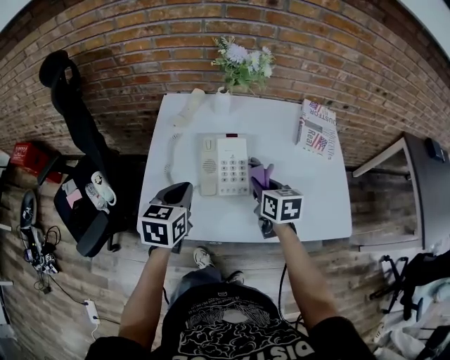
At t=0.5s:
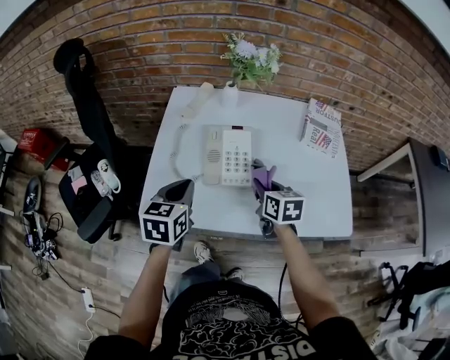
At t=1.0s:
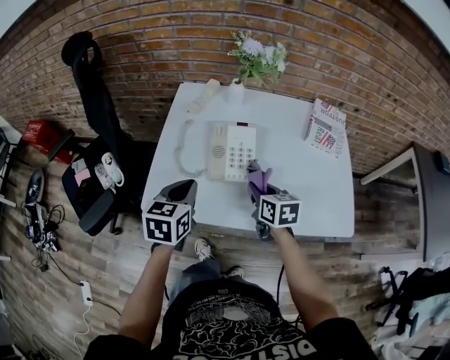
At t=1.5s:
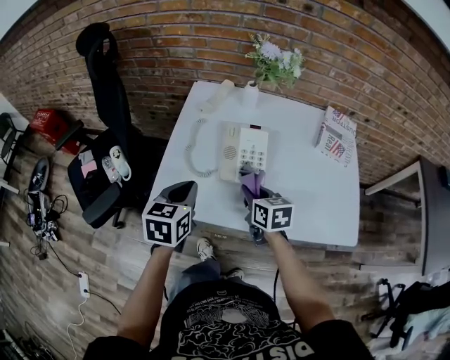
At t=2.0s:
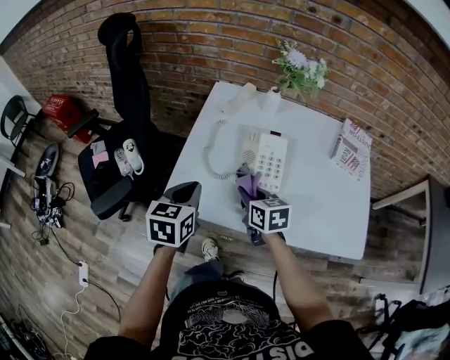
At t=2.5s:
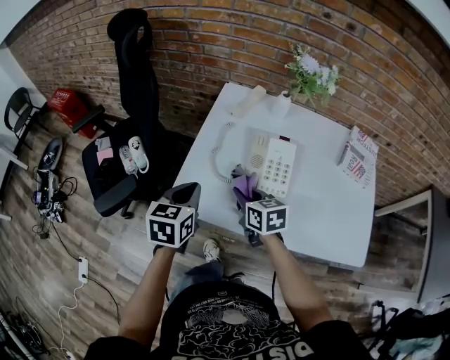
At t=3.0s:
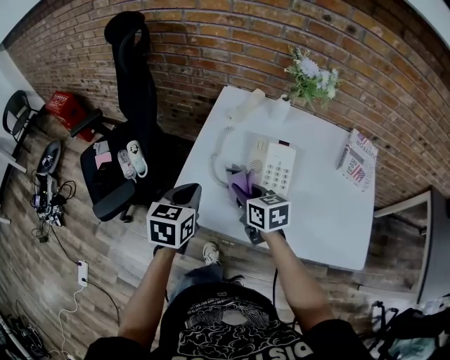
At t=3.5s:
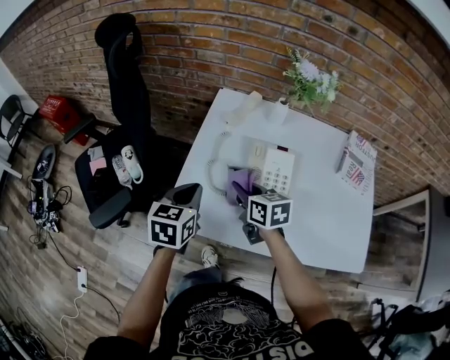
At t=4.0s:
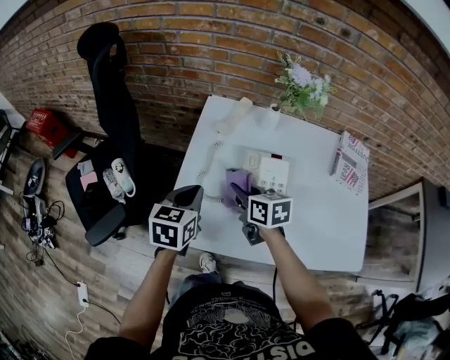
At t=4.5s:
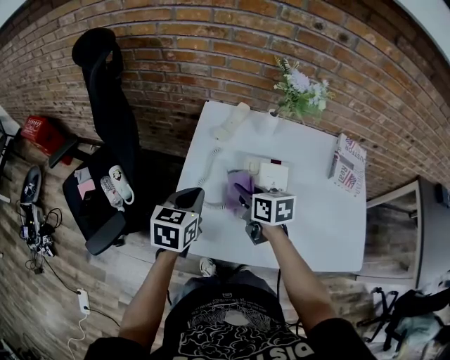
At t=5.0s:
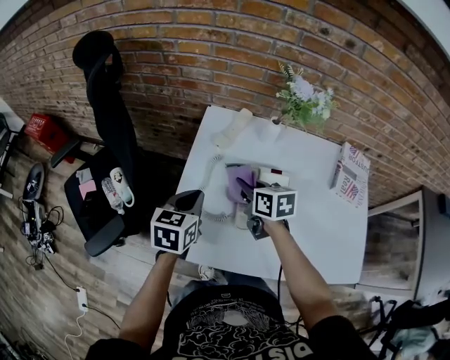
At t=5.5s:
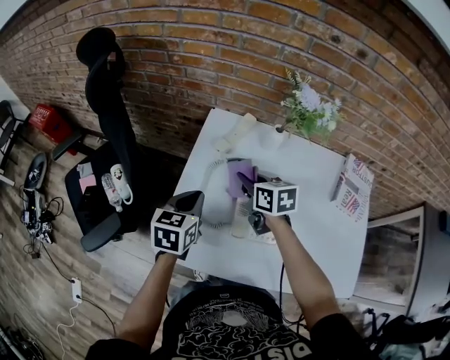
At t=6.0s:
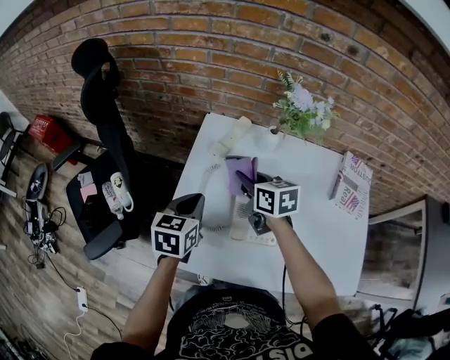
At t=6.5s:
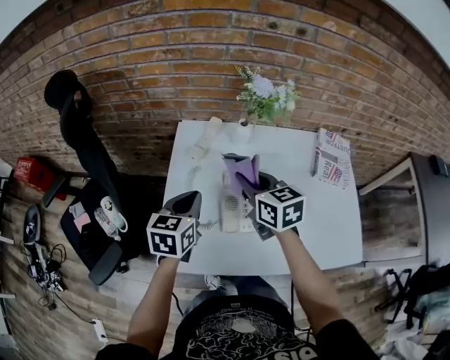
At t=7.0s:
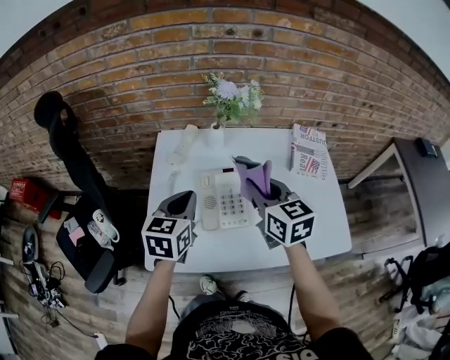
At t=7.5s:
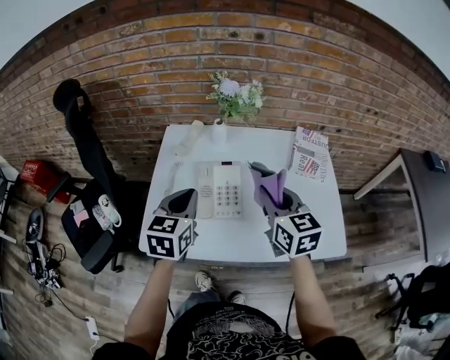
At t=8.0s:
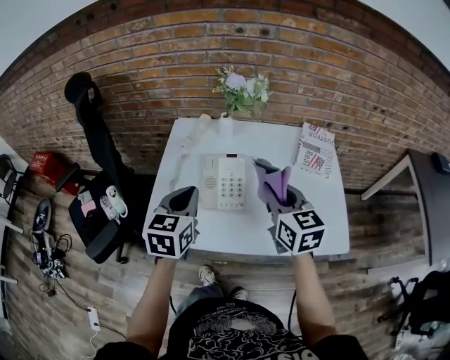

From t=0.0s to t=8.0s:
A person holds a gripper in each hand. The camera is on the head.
From t=0.0s to t=2.0s: The right gripper travels to the left by some 15 cm; the left gripper is displaced to the left and backward by approximately 10 cm.
From t=2.0s to t=4.0s: The grippers both shift forward by approximately 10 cm.
From t=4.0s to t=6.0s: The left gripper travels forward by about 5 cm, while the right gripper travels forward by about 10 cm.
From t=6.0s to t=8.0s: The left gripper travels backward, to the right and upward by some 20 cm. The right gripper travels backward, to the right and upward by roughly 30 cm, and swivels approximately 30 degrees.

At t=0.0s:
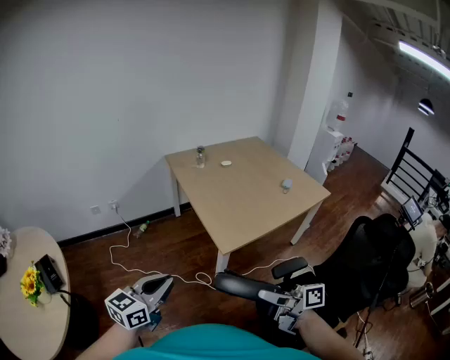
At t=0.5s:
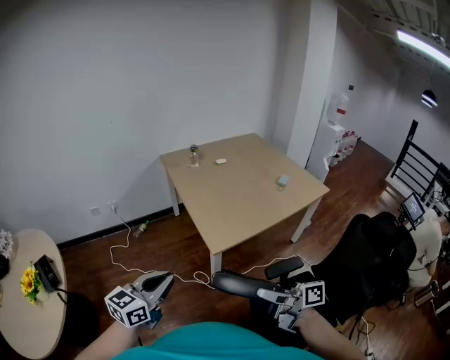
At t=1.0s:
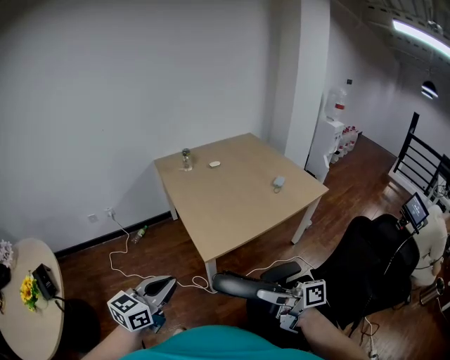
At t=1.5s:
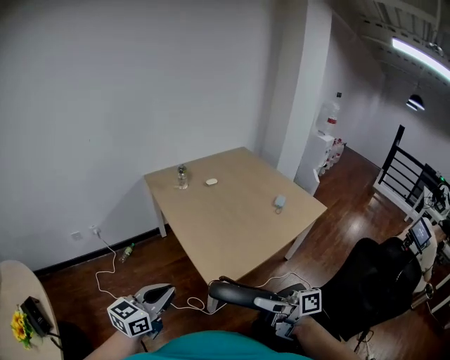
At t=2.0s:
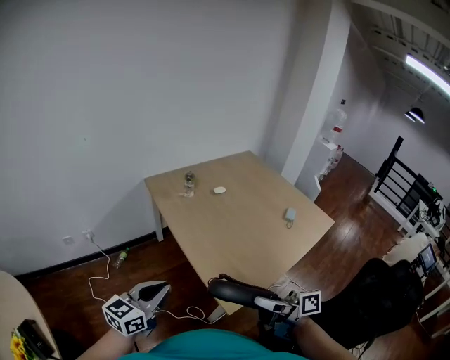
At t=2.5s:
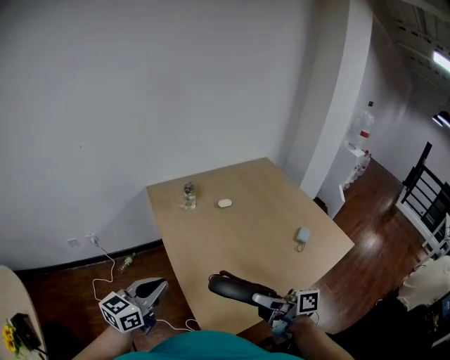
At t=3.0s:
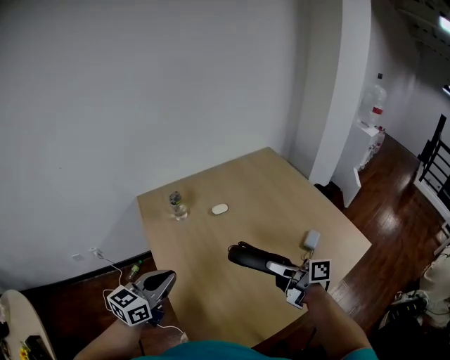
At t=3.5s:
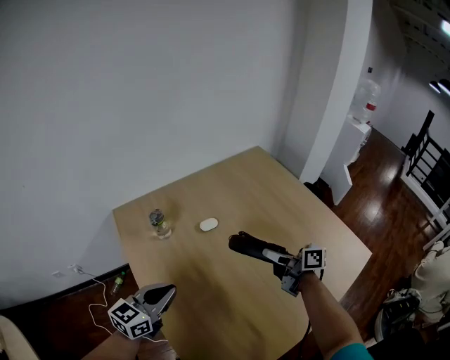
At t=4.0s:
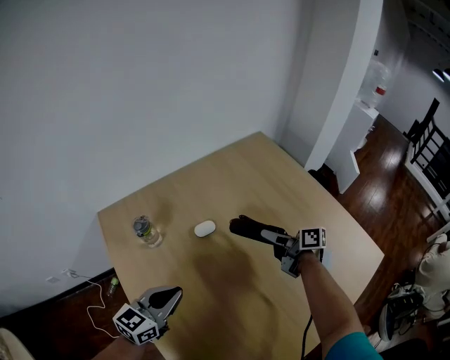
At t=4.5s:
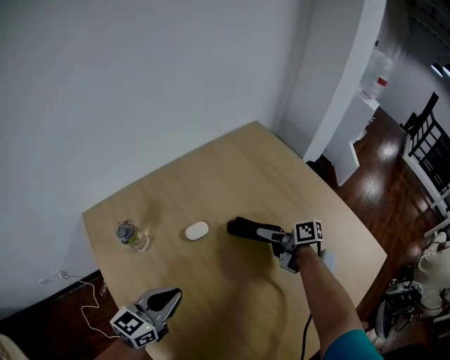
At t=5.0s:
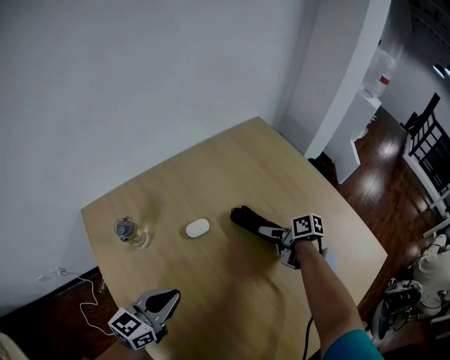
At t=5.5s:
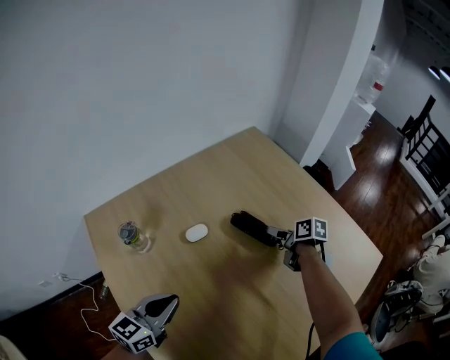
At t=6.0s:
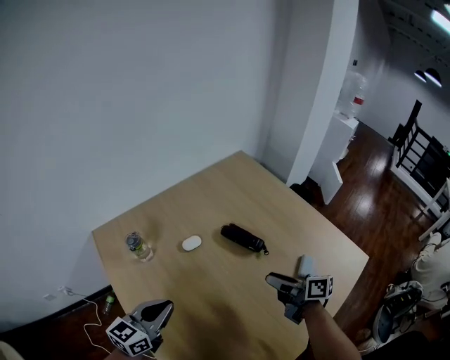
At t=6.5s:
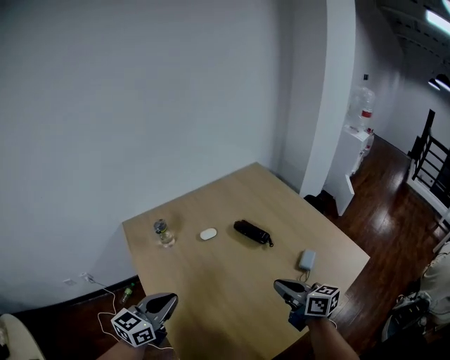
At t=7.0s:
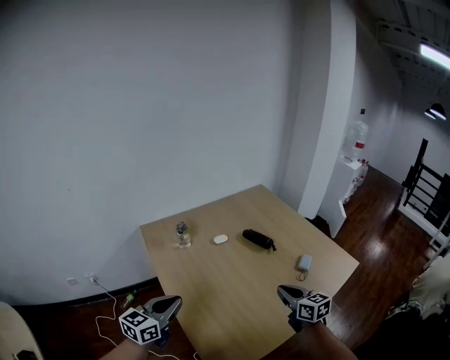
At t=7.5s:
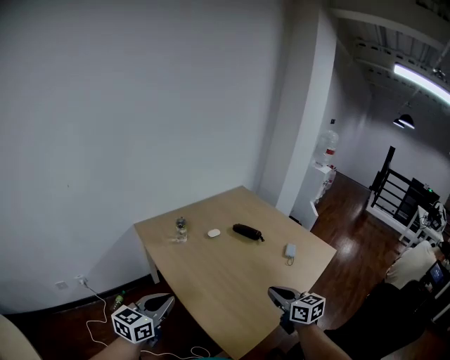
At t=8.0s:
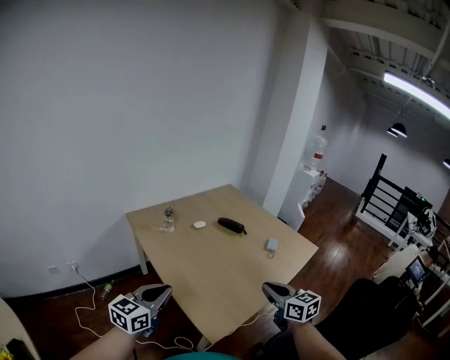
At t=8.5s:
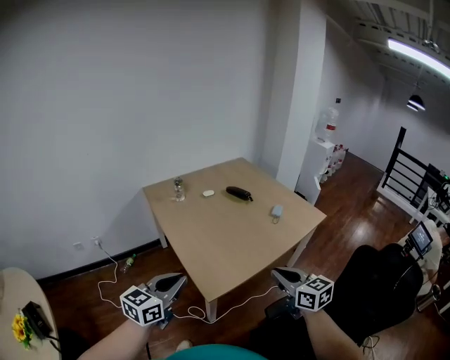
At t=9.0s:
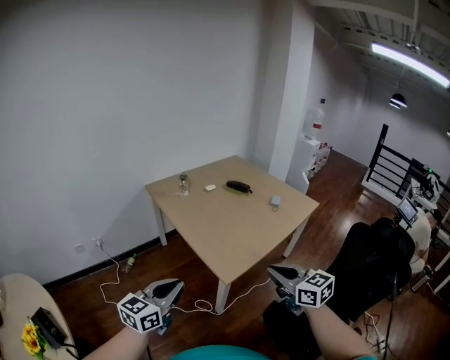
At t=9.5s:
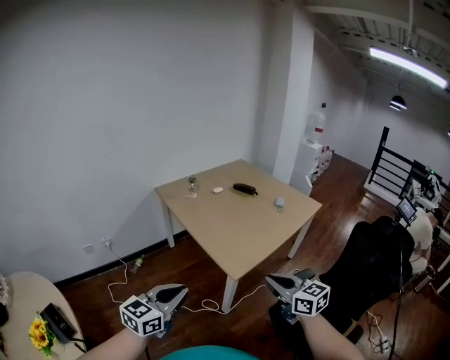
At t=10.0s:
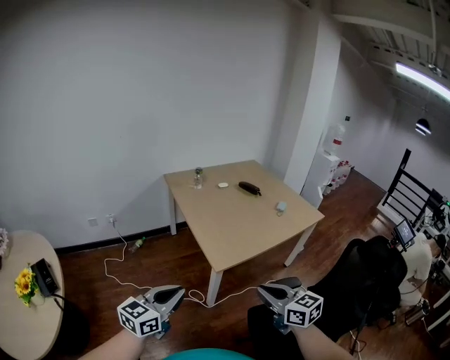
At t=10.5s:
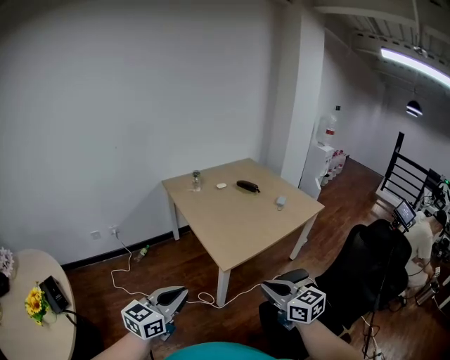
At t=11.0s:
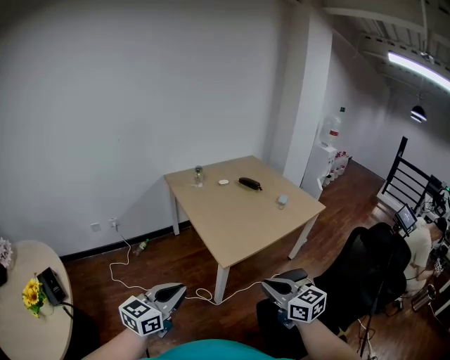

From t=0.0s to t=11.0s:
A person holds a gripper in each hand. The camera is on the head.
From t=0.0s to t=2.0s: Both grippers move forward, about 30 cm.
From t=2.0s to t=3.5s: The two grippers go approximately 50 cm forward and to the right.
From t=3.5s to t=5.5s: The left gripper shifts approximately 10 cm forward and downward, while the right gripper moves downward, forward and to the right, some 25 cm, and angles its fingers downward, by approximately 40 degrees.
From t=5.5s to t=7.5s: The right gripper shifts about 50 cm backward and upward, rotates some 50 degrees, and closes up, while the left gripper shifts roughly 35 cm backward, upward and to the left.
From t=7.5s to t=9.0s: The grippers both shift backward by approximately 30 cm.
From t=9.0s to t=11.0s: Both grippers travel together backward, some 15 cm.

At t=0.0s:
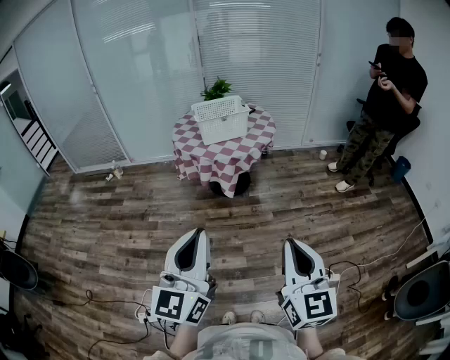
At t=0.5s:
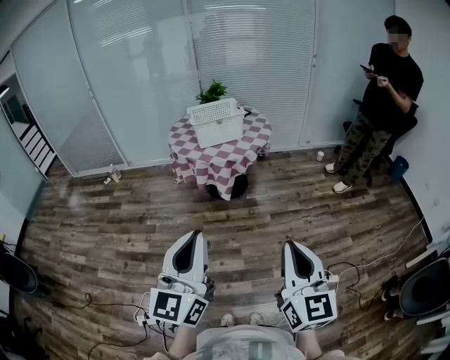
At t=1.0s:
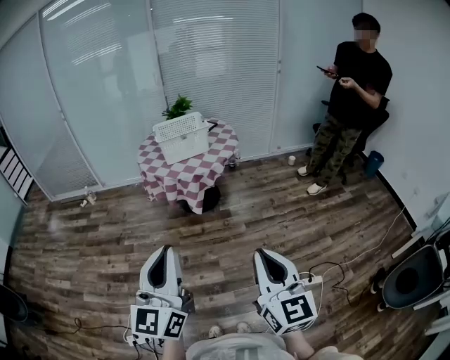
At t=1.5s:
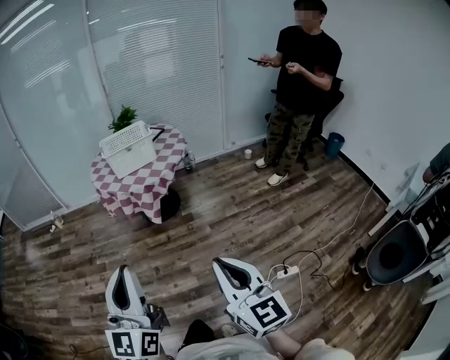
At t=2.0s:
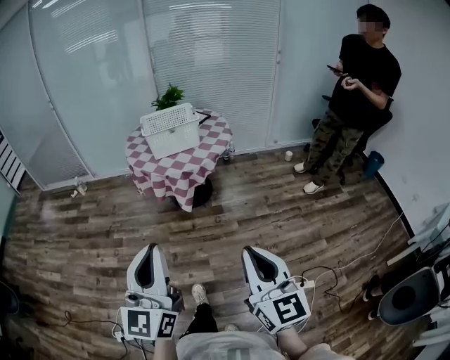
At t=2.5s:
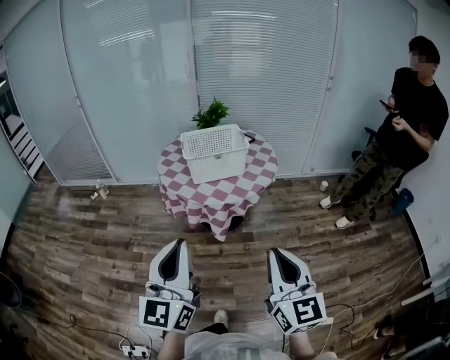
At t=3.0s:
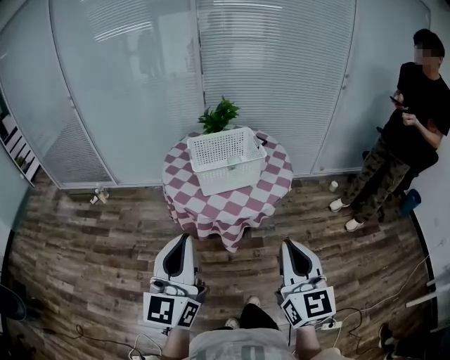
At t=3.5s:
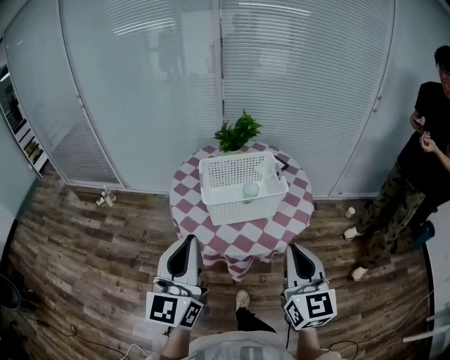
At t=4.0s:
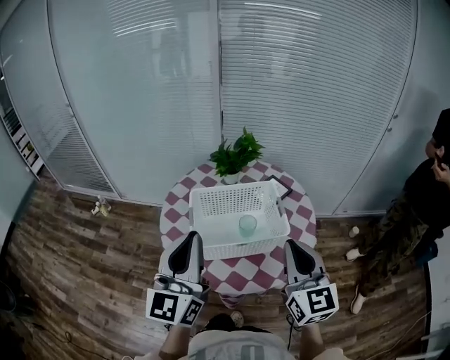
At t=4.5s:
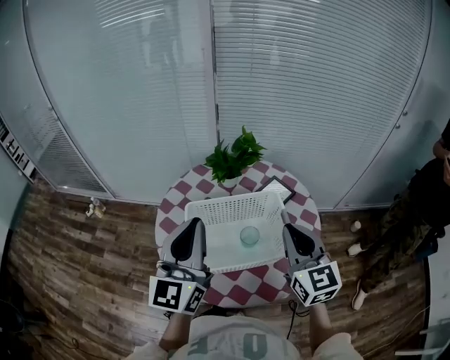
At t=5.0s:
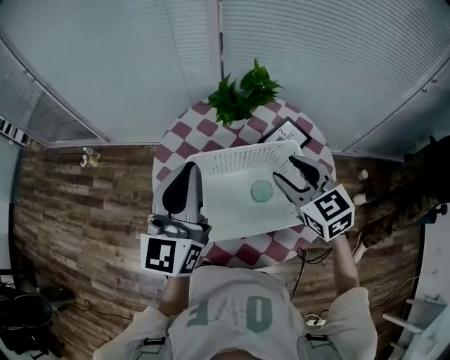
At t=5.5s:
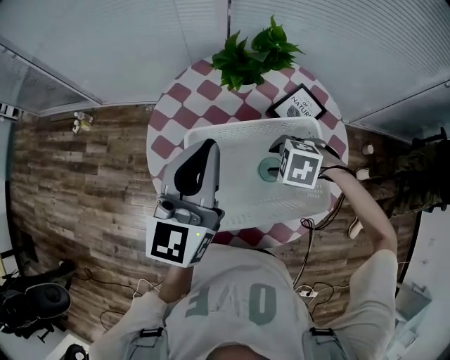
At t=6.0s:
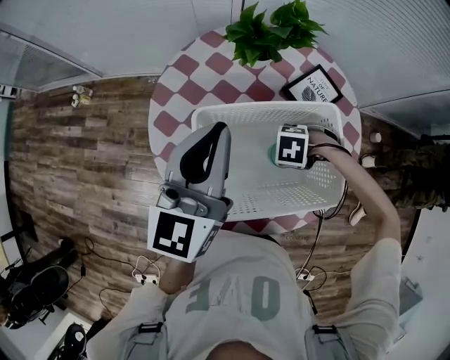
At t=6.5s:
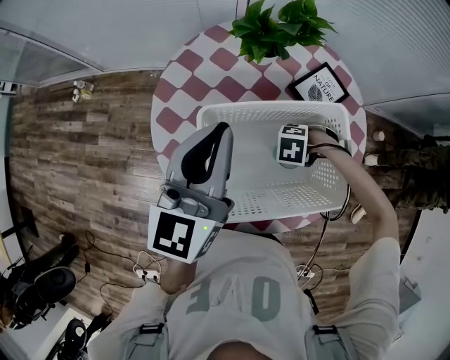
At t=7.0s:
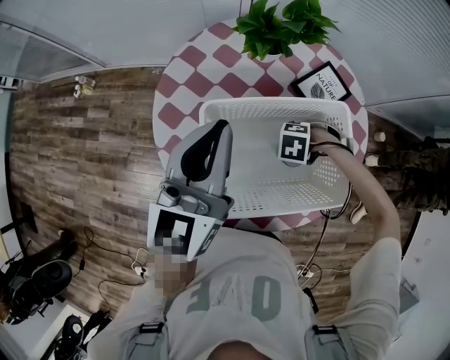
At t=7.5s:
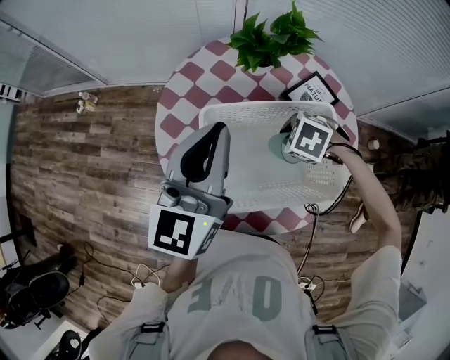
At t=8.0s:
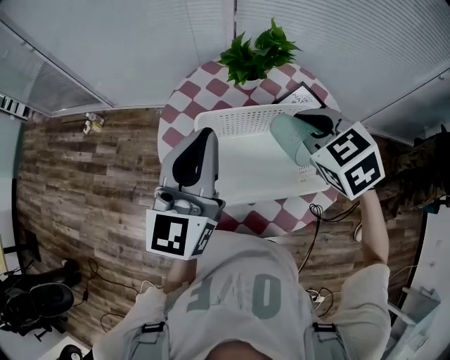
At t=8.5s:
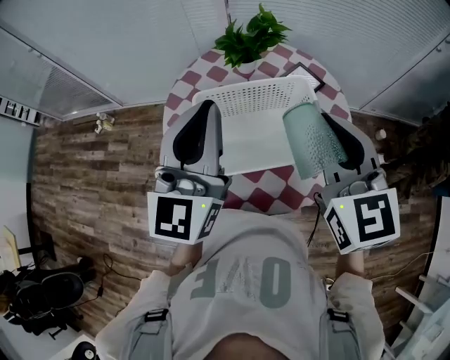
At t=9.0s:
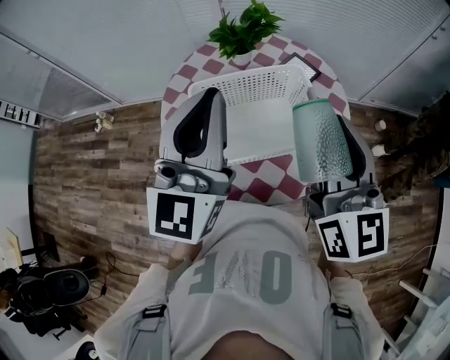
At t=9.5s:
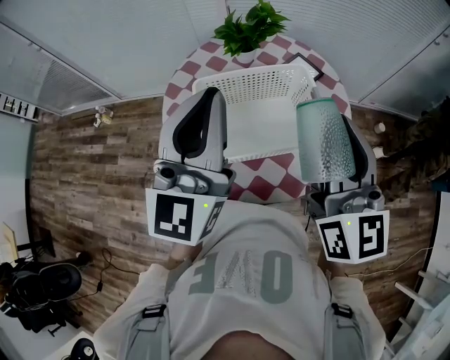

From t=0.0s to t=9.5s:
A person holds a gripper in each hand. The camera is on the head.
From t=0.0s to t=2.0s: Both grippers move forward and to the right, some 10 cm.
From t=2.0s to t=4.0s: Both grippers are carried forward, about 70 cm.
From t=4.0s to t=5.5s: The right gripper heads downward, covering some 25 cm, tilts its fingers some 80 degrees downward, and opens. The left gripper moves approximately 25 cm.
From t=5.5s to t=7.5s: The right gripper moves about 15 cm downward and comes back, and closes up.
From t=7.5s to t=9.5s: The right gripper moves upward, some 35 cm, and tips its fingers upward by about 90 degrees. Meanwhile the left gripper changes place by roughly 15 cm.
